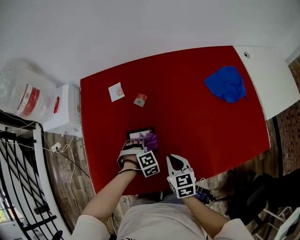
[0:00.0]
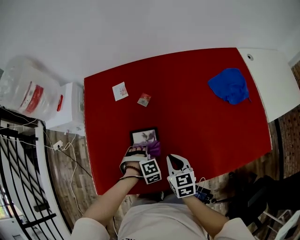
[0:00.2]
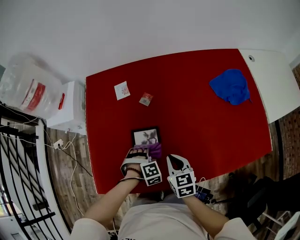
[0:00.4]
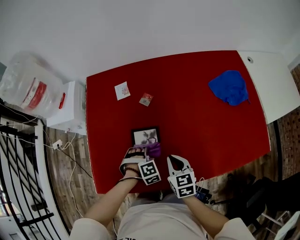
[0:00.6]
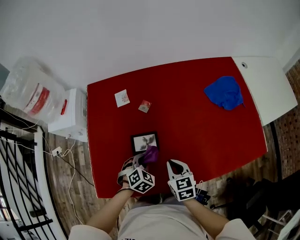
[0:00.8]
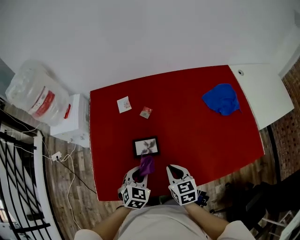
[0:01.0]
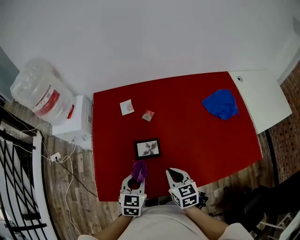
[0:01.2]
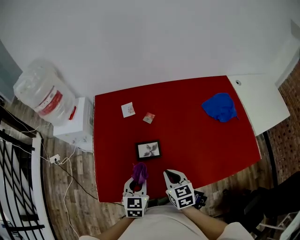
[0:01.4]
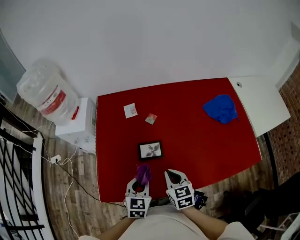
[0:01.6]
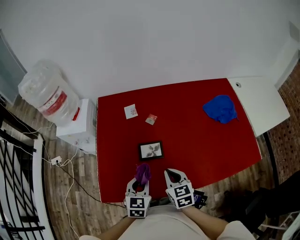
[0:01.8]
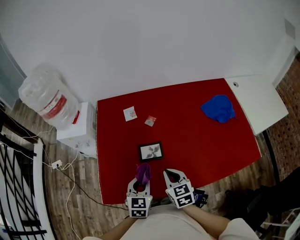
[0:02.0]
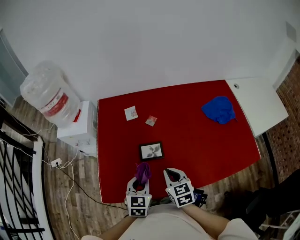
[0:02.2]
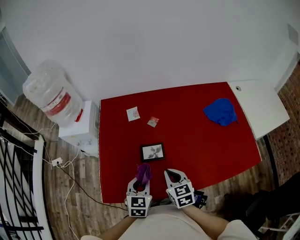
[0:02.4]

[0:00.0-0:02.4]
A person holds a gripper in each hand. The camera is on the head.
0:00.0 to 0:01.2: The left gripper is displaced upward, backward and to the left by about 20 cm, and twists some 70 degrees counterclockwise, seen from behind; the right gripper goes approximately 10 cm upward.
0:01.2 to 0:02.4: The grippers move only a little.

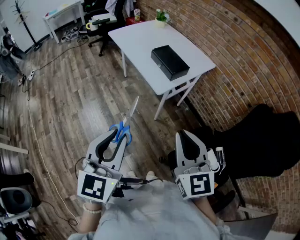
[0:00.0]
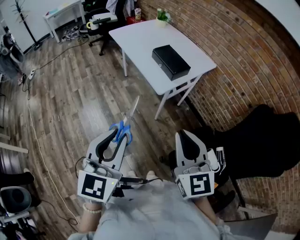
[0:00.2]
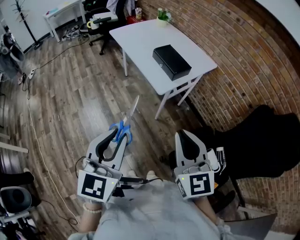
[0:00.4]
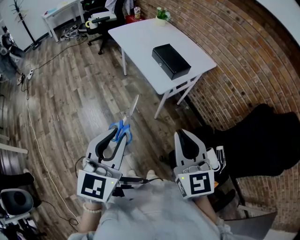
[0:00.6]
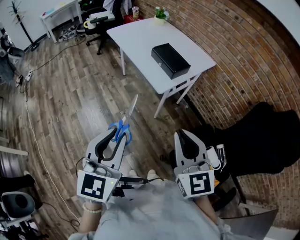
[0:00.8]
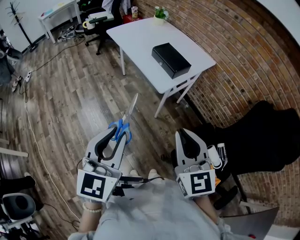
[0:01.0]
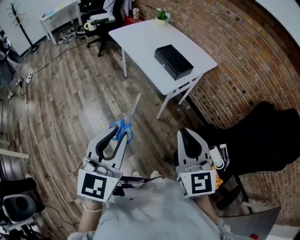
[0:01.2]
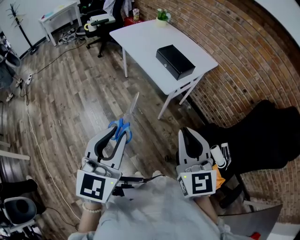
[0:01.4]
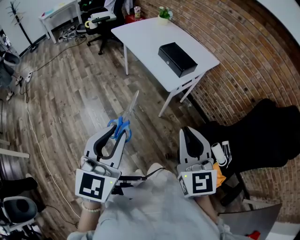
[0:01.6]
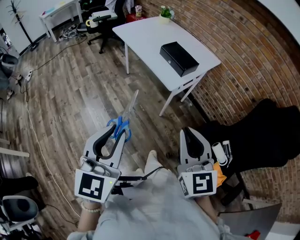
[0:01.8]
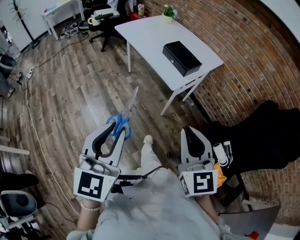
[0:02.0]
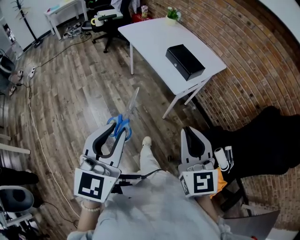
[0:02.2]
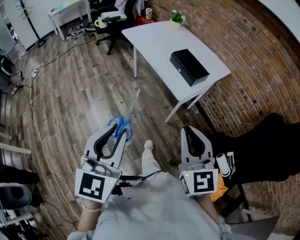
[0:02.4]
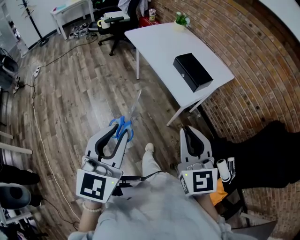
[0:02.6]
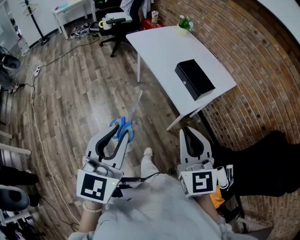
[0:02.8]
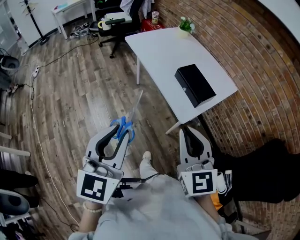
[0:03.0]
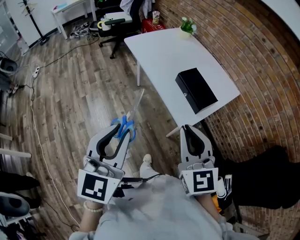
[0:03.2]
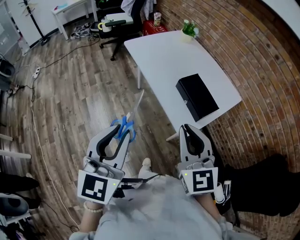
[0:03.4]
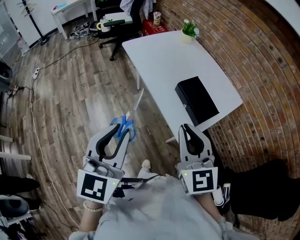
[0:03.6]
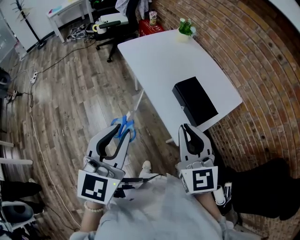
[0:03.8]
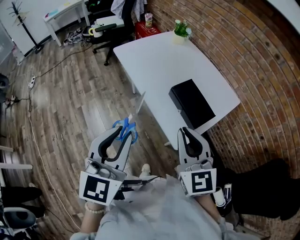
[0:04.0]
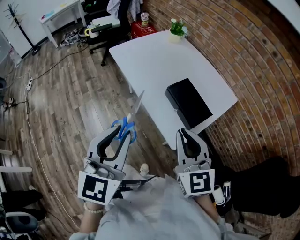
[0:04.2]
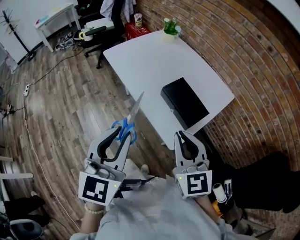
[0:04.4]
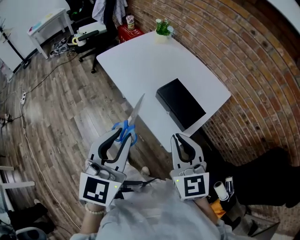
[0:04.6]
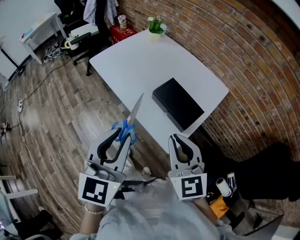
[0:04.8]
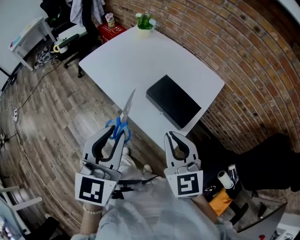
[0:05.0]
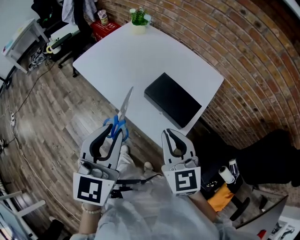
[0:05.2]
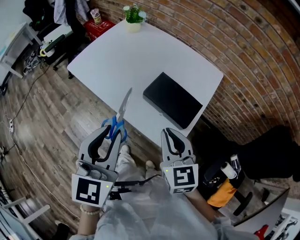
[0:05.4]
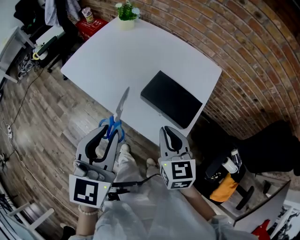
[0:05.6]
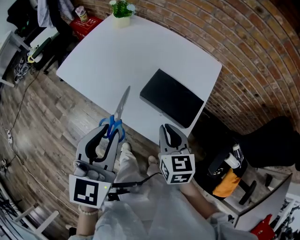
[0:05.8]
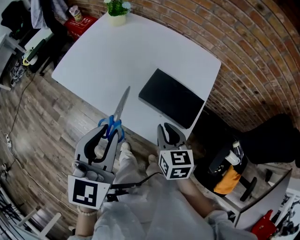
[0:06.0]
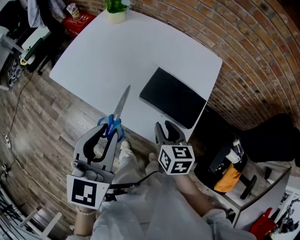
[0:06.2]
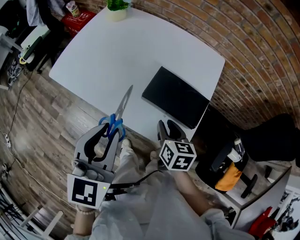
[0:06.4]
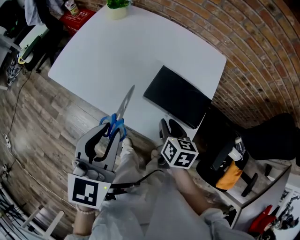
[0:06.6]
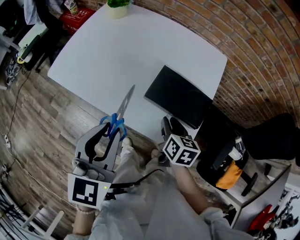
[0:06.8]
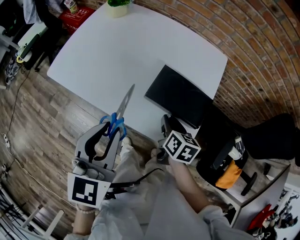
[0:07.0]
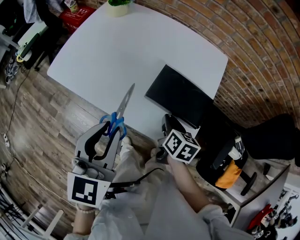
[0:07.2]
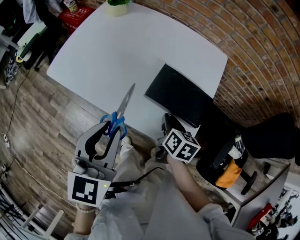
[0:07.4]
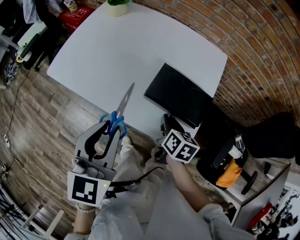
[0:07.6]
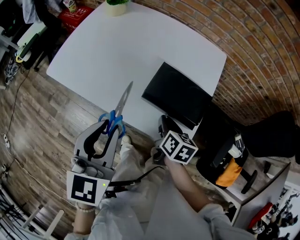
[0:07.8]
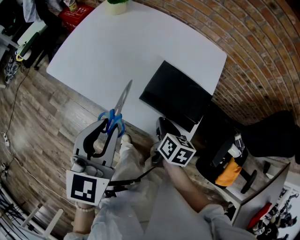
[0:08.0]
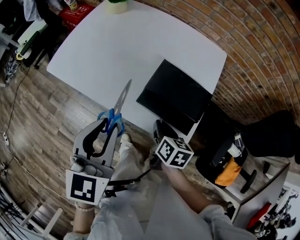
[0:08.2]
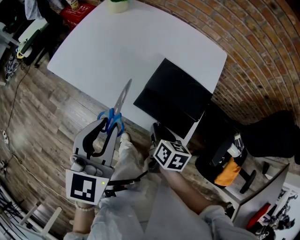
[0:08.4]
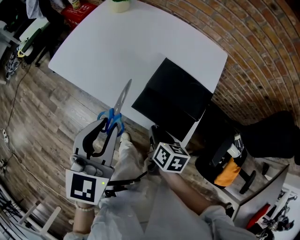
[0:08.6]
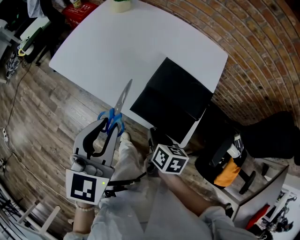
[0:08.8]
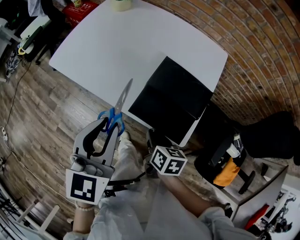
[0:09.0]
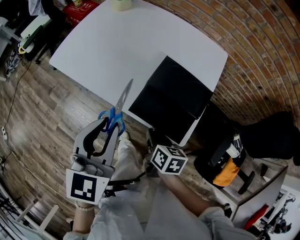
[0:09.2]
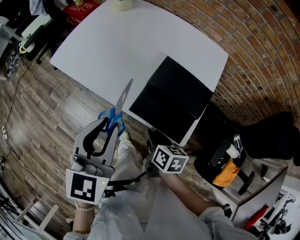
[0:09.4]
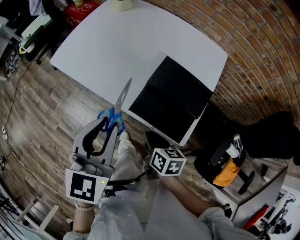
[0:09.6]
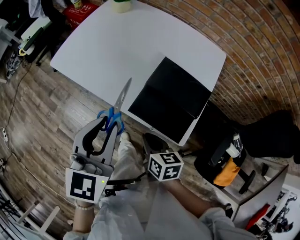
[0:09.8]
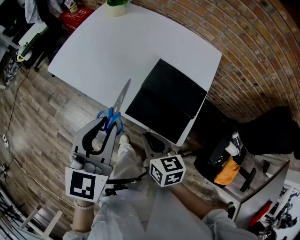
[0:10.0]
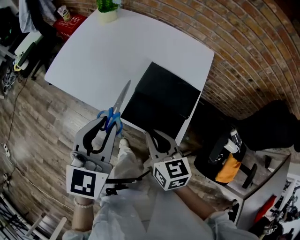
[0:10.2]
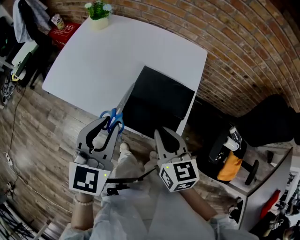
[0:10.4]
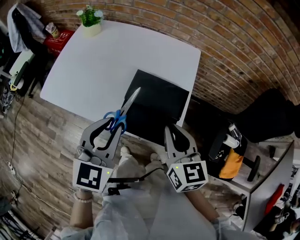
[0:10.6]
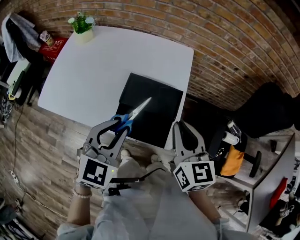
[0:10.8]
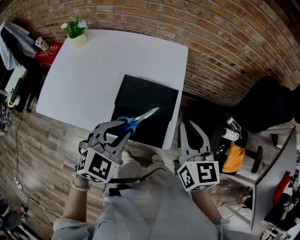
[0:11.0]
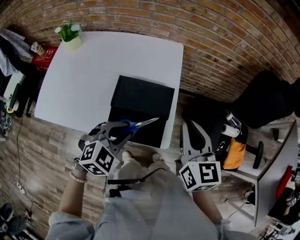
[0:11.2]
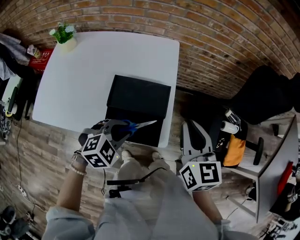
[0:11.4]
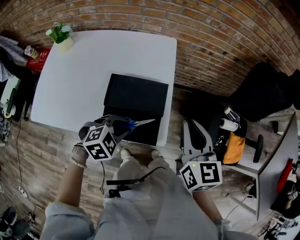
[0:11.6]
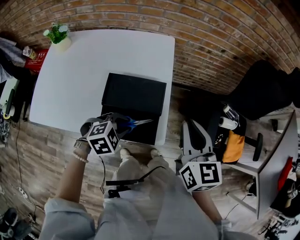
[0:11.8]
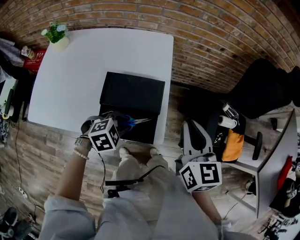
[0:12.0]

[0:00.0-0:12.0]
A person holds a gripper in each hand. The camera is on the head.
0:00.0 to 0:01.6: Both grippers move to the left, some 10 cm.
0:01.6 to 0:03.0: The grippers both shift forward by about 20 cm.
0:03.0 to 0:04.4: The two grippers go some 20 cm forward.
0:04.4 to 0:06.0: The right gripper moves downward and forward, approximately 25 cm, and rotates about 40 degrees. The left gripper moves forward, some 20 cm, and turns by some 30 degrees.
0:06.0 to 0:07.6: The right gripper heads downward, covering roughly 10 cm, and rotates some 30 degrees.
0:07.6 to 0:09.0: The right gripper moves backward and to the left, some 10 cm.
0:09.0 to 0:10.4: The right gripper is displaced upward by some 15 cm, and changes its angle by some 30 degrees.
0:10.4 to 0:12.0: The right gripper shifts by approximately 20 cm, and turns by about 30 degrees; the left gripper heads downward, covering some 20 cm, and tips its fingers downward by about 40 degrees.

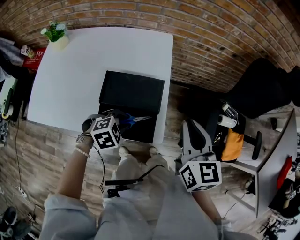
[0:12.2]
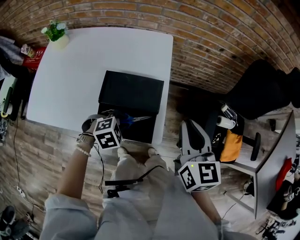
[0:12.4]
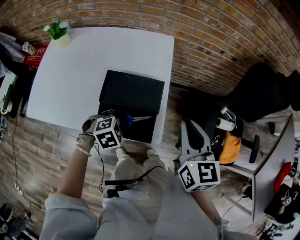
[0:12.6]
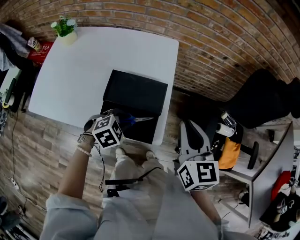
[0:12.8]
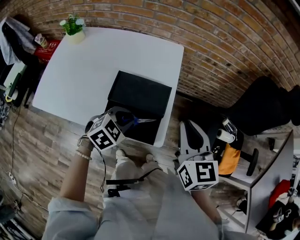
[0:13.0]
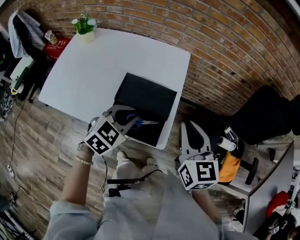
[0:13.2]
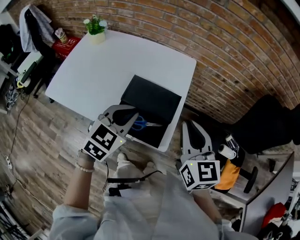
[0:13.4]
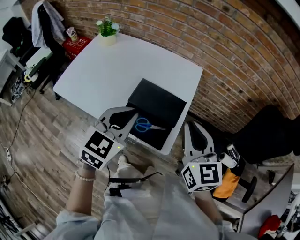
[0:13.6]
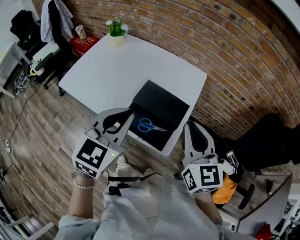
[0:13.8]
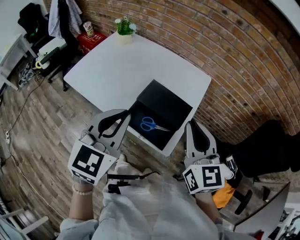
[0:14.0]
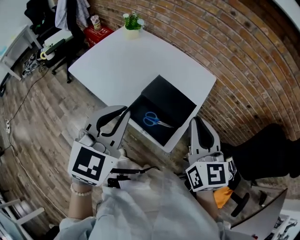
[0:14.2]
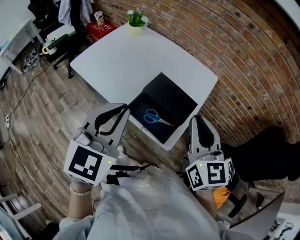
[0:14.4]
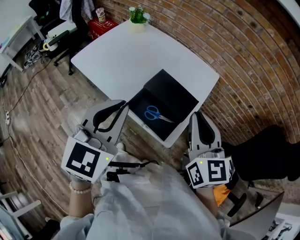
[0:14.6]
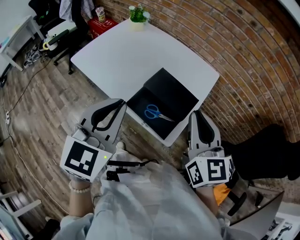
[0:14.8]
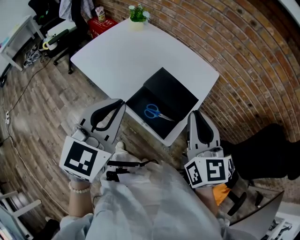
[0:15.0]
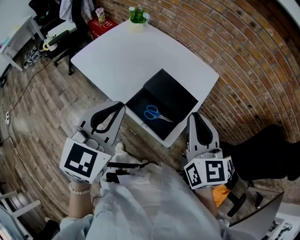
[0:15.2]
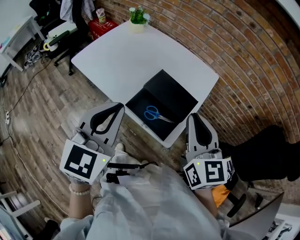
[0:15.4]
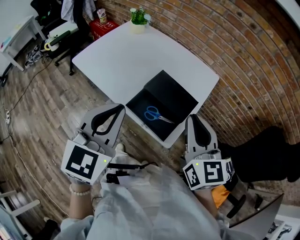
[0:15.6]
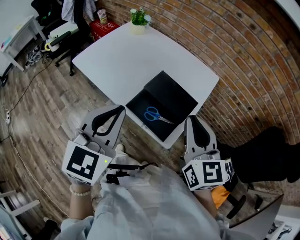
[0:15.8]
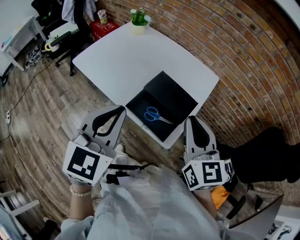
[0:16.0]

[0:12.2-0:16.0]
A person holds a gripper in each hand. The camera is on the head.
0:12.2 to 0:13.4: The right gripper moves roughly 5 cm. The left gripper moves upward, about 20 cm, and tips its fingers upward by some 30 degrees.
0:13.4 to 0:14.8: The left gripper shifts about 20 cm upward, backward and to the left, and swivels some 40 degrees. The right gripper travels upward and to the left by about 10 cm.
0:14.8 to 0:16.0: Both grippers stay put.

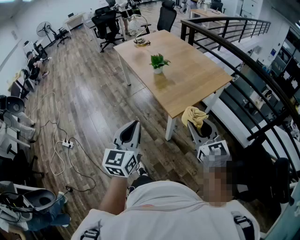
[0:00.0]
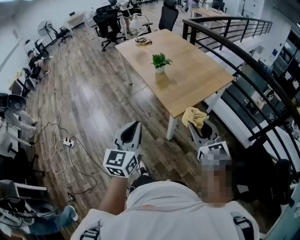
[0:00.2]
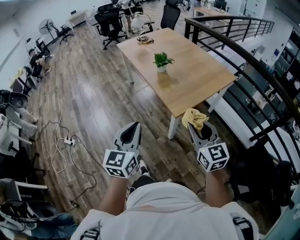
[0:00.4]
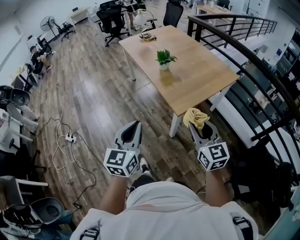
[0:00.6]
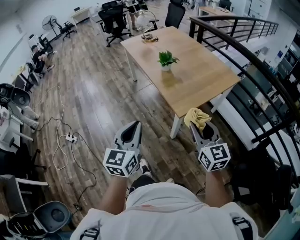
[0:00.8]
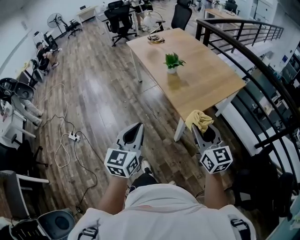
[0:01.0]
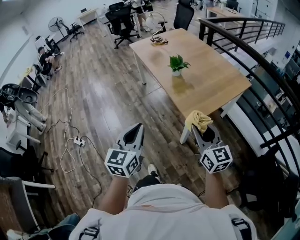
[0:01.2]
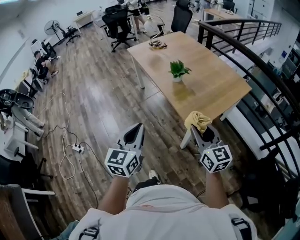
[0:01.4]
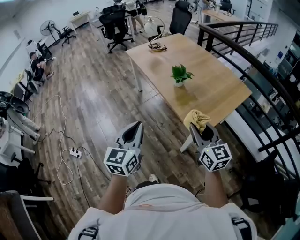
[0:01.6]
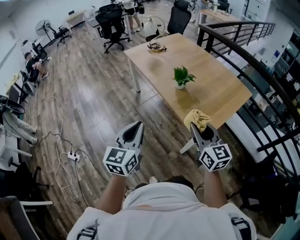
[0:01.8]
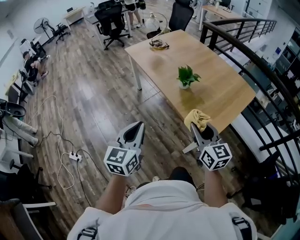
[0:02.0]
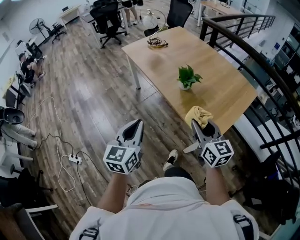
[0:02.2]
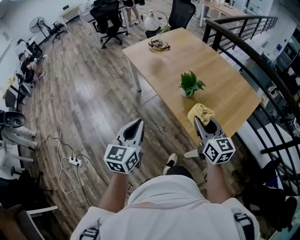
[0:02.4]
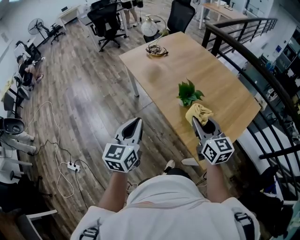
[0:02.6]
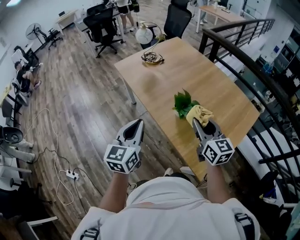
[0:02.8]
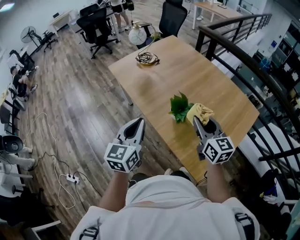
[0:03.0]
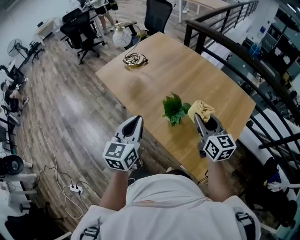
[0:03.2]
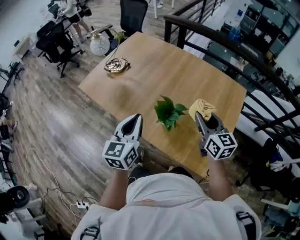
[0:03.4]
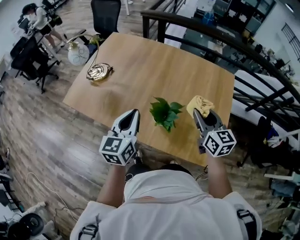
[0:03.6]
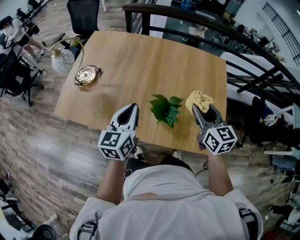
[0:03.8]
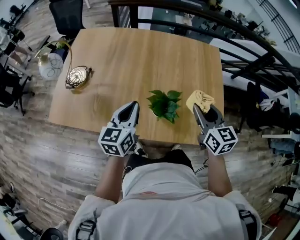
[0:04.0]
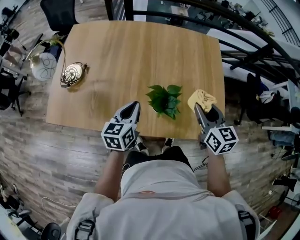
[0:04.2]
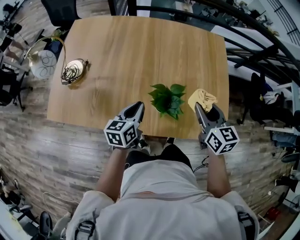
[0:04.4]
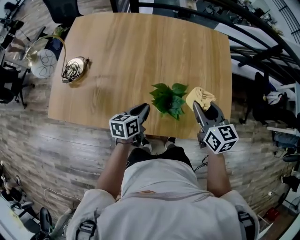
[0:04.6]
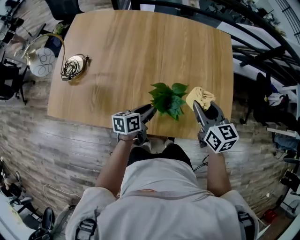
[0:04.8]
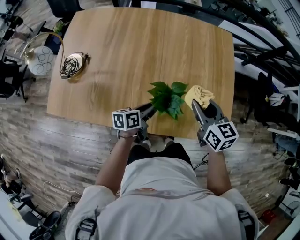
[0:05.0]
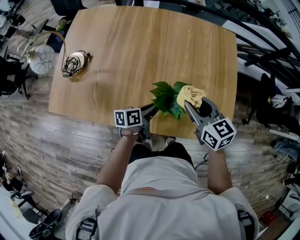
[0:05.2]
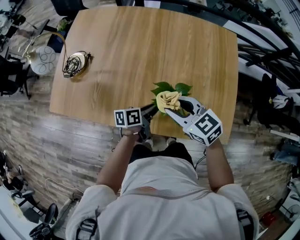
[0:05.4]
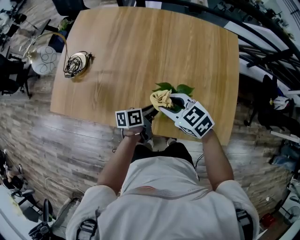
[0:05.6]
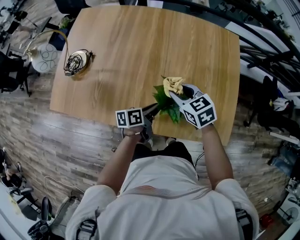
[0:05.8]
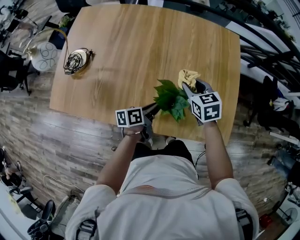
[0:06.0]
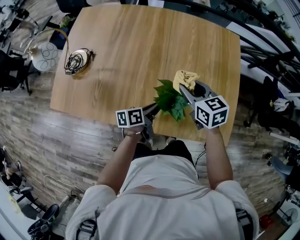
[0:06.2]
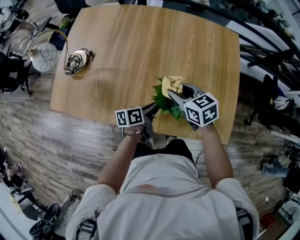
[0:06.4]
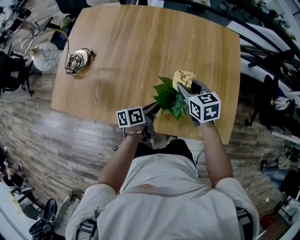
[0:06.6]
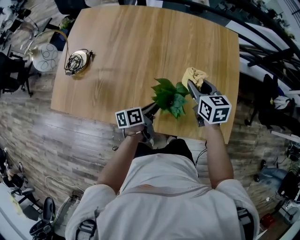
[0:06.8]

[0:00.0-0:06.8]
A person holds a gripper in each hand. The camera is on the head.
0:00.0 to 0:01.4: Both grippers move forward and to the left, approximately 15 cm.
0:01.4 to 0:02.8: The two grippers go roughly 35 cm forward.
0:02.8 to 0:04.0: The right gripper changes place by roughly 10 cm, and changes its angle by approximately 50 degrees. The left gripper moves roughly 30 cm, and rotates roughly 50 degrees.
0:04.0 to 0:05.4: The right gripper moves to the left and downward, some 15 cm, and changes its angle by approximately 40 degrees. Meanwhile the left gripper moves downward and to the right, approximately 20 cm, and rolls counterclockwise, seen from behind, by approximately 40 degrees.
0:05.4 to 0:06.8: The right gripper goes left and right, about 10 cm each way, reversing 2 times, and rotates about 30 degrees.
